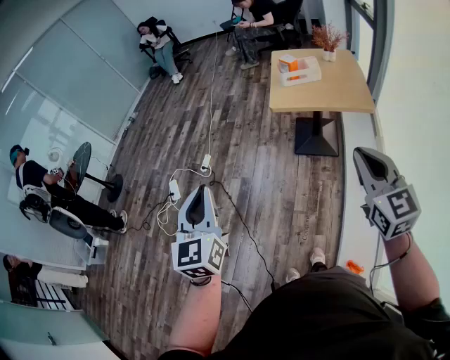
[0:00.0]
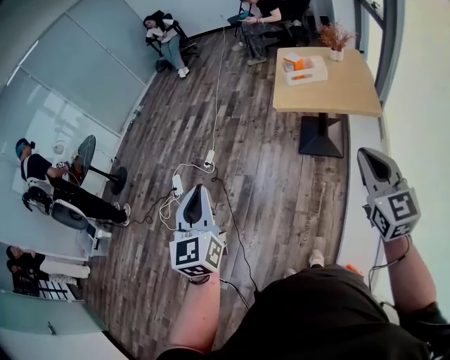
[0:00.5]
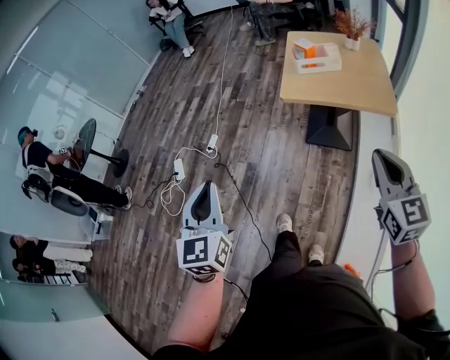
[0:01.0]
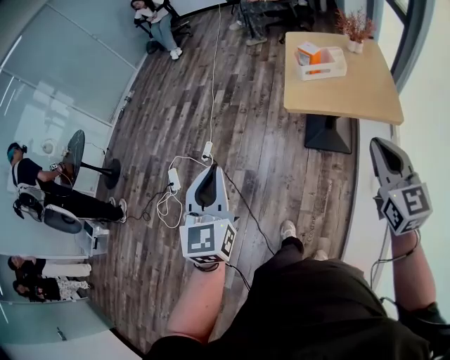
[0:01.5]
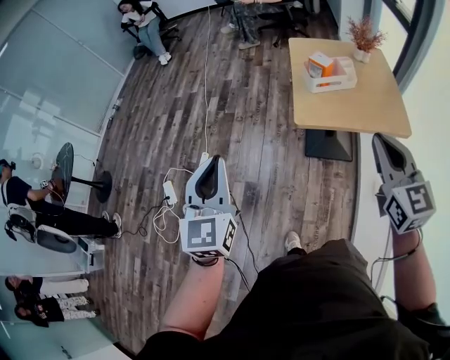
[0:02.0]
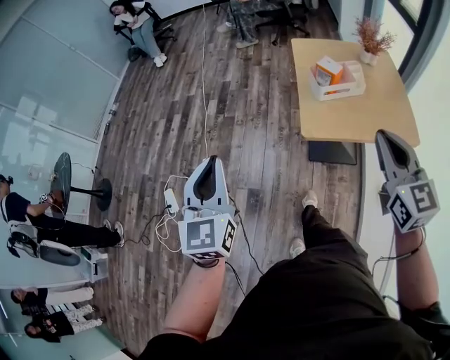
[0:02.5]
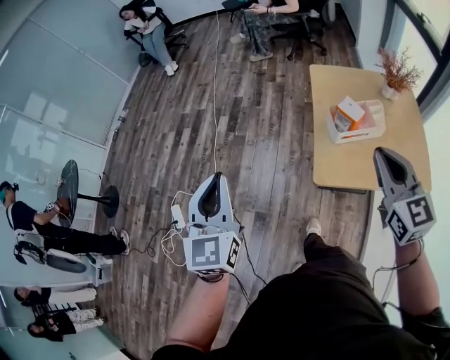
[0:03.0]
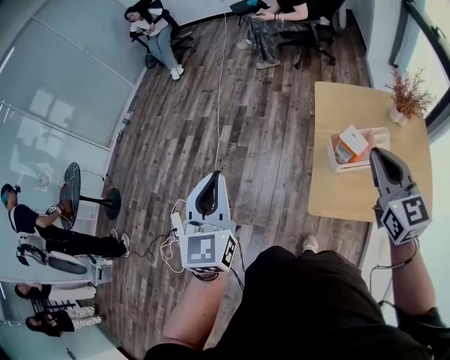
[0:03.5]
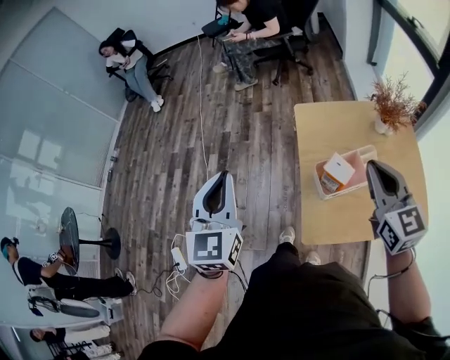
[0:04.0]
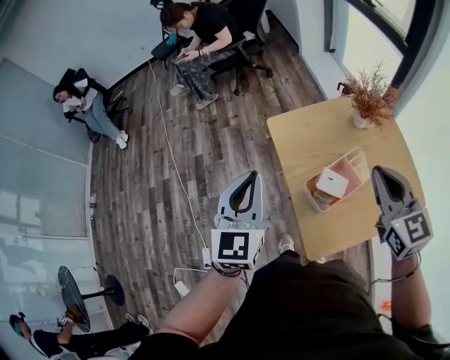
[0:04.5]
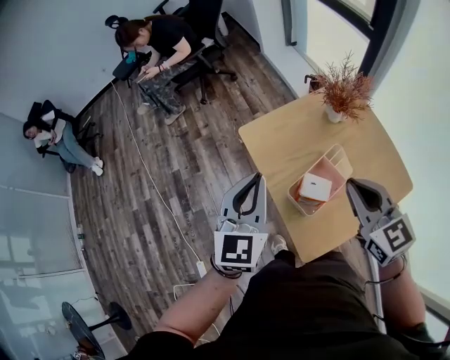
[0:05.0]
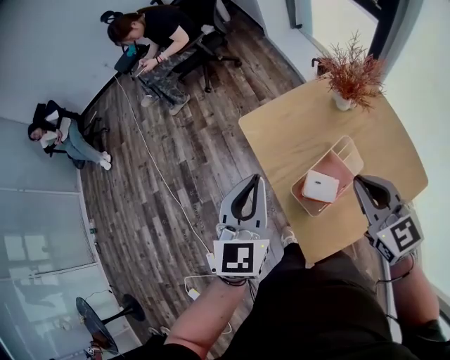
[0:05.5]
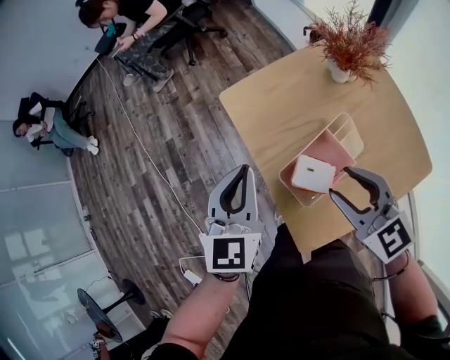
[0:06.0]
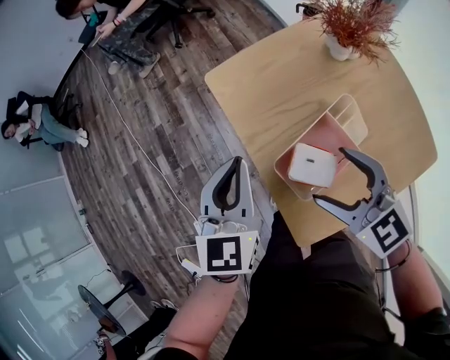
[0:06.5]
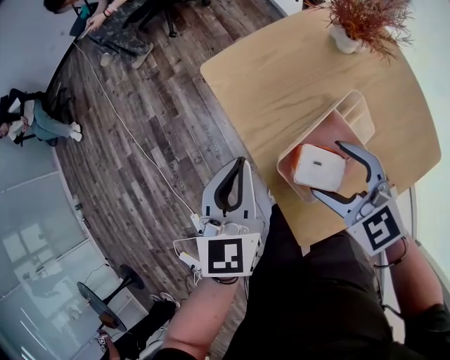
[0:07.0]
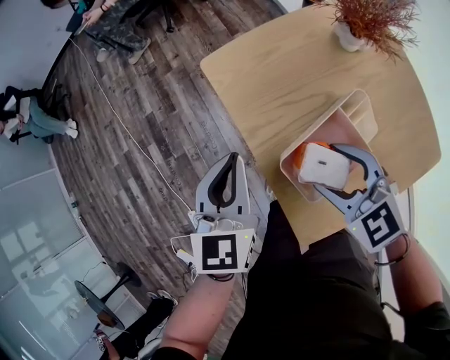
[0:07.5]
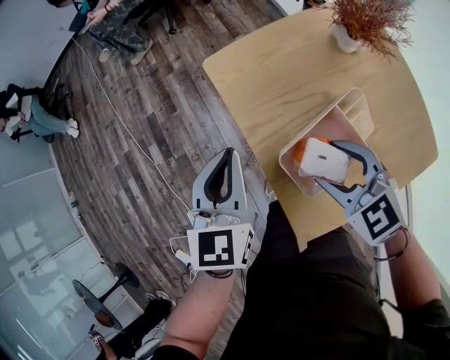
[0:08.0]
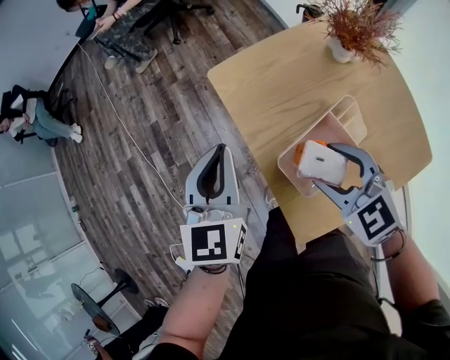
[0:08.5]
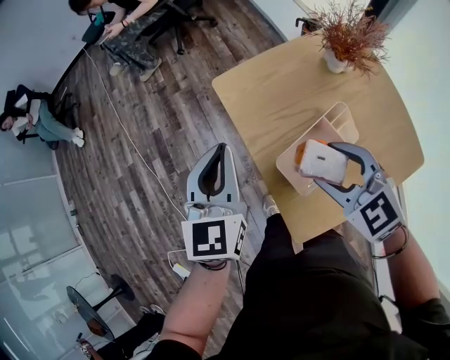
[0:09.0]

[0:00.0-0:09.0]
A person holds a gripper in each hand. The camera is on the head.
0:00.0 to 0:02.0: Both grippers travel together forward, about 35 cm.
0:02.0 to 0:04.5: The two grippers travel together, some 50 cm. The left gripper turns by about 30 degrees.
0:04.5 to 0:07.0: The right gripper shifts approximately 20 cm downward, turns by approximately 30 degrees, and opens up. The left gripper moves downward and to the right, about 20 cm.
0:07.0 to 0:09.0: Both grippers travel together upward, some 5 cm.

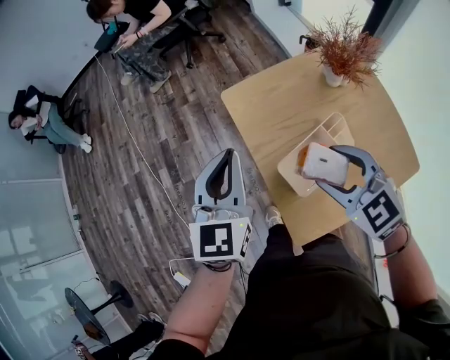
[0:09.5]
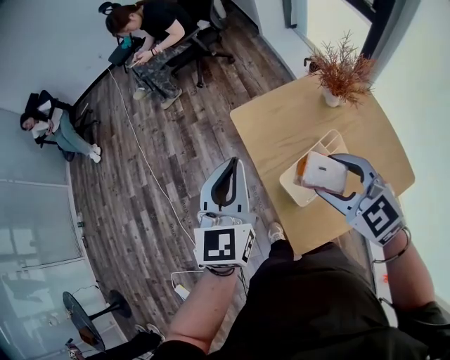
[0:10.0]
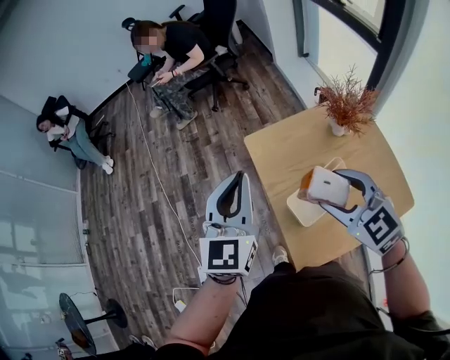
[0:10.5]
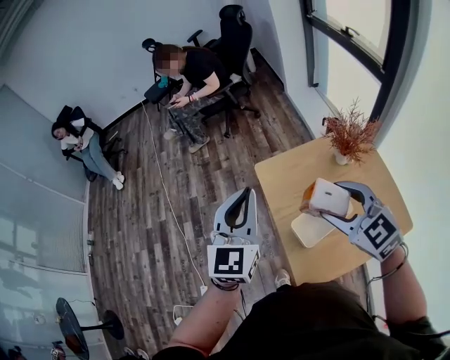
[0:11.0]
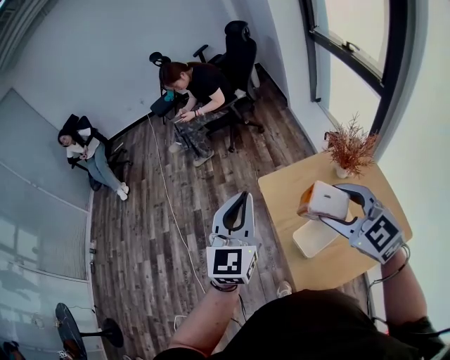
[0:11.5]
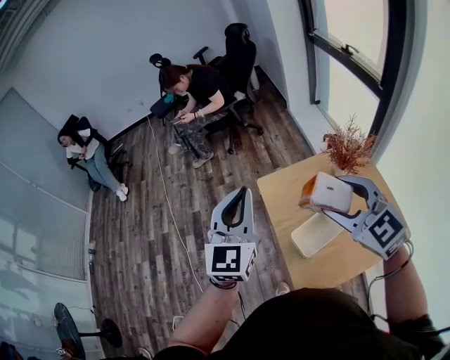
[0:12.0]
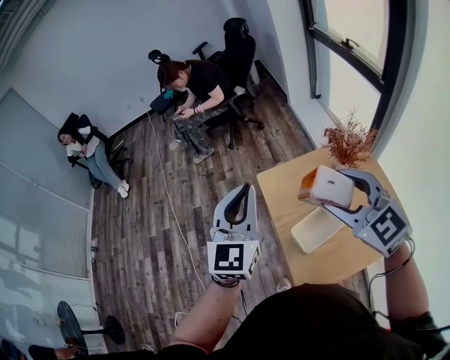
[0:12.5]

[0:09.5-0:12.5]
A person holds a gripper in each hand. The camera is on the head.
0:09.5 to 0:11.0: Both grippers move upward, some 15 cm.
0:11.0 to 0:12.5: The right gripper travels upward by approximately 10 cm.

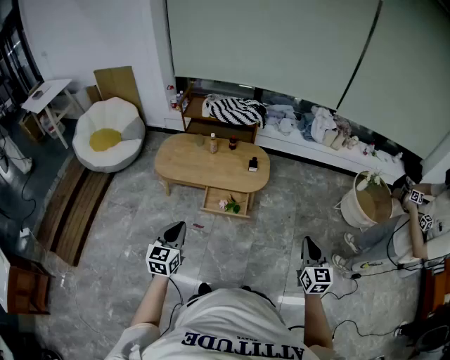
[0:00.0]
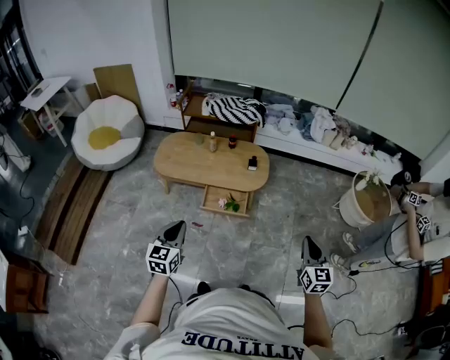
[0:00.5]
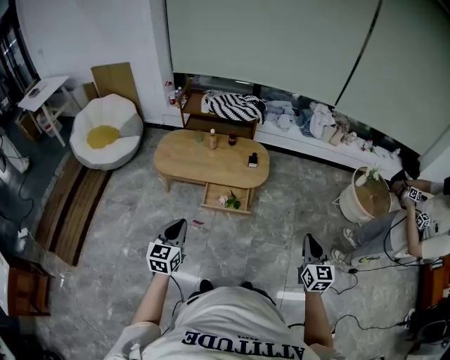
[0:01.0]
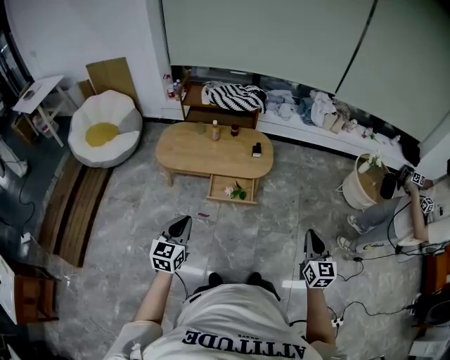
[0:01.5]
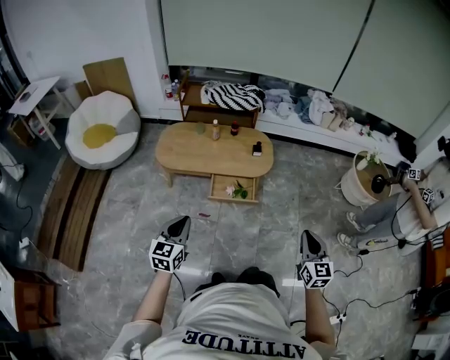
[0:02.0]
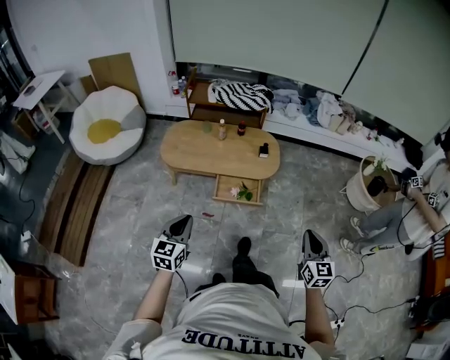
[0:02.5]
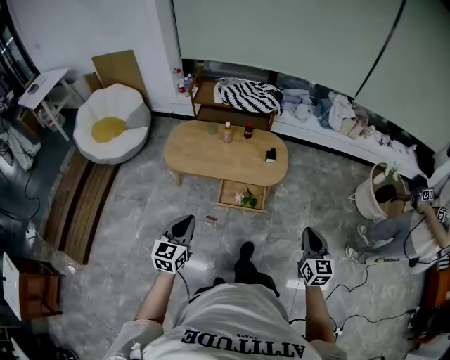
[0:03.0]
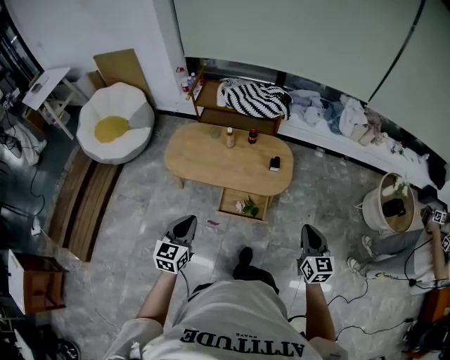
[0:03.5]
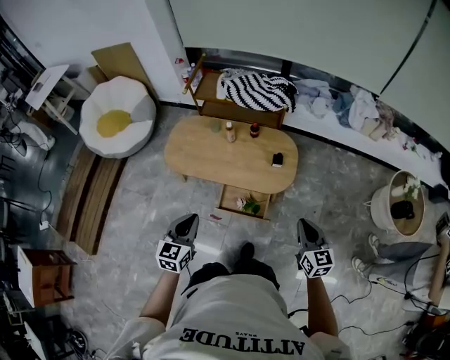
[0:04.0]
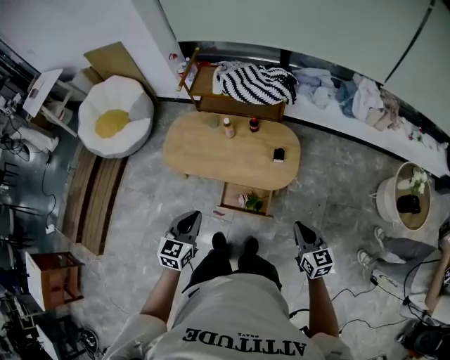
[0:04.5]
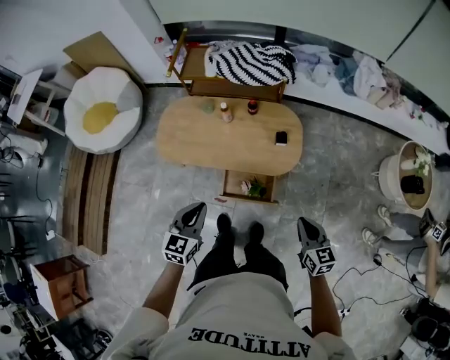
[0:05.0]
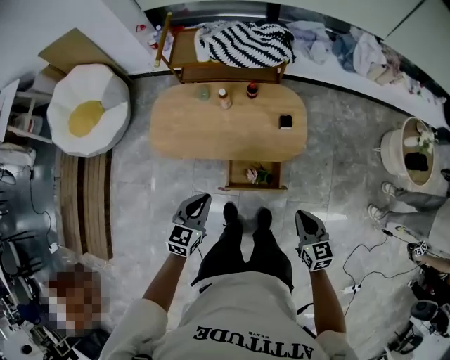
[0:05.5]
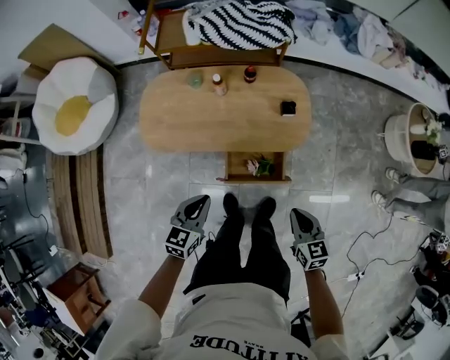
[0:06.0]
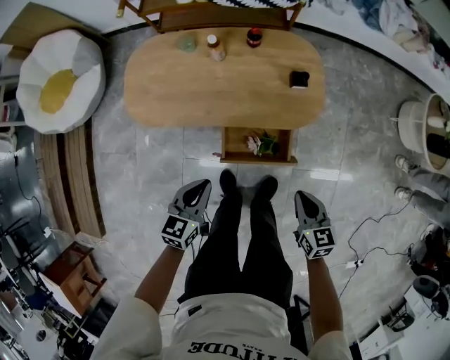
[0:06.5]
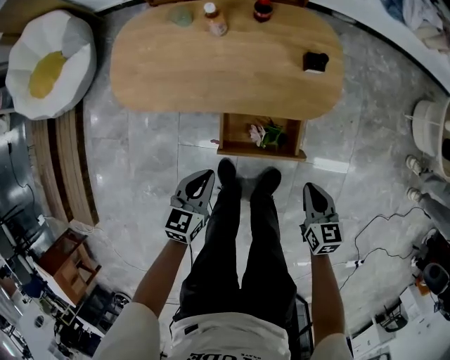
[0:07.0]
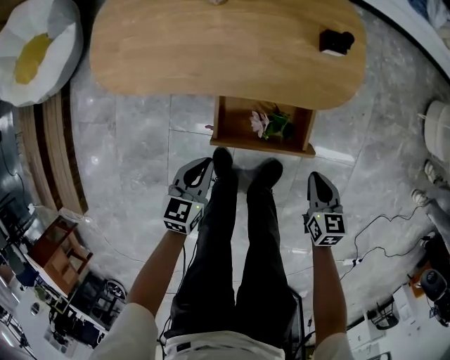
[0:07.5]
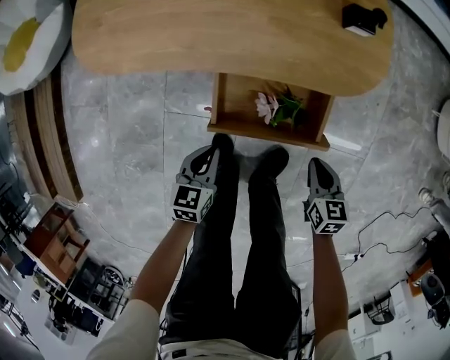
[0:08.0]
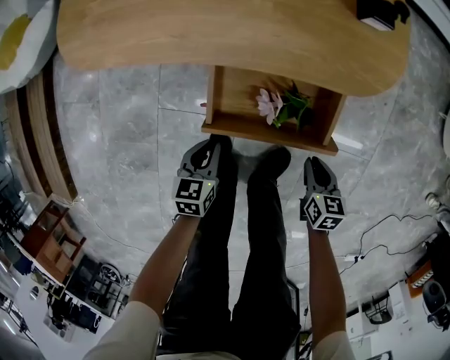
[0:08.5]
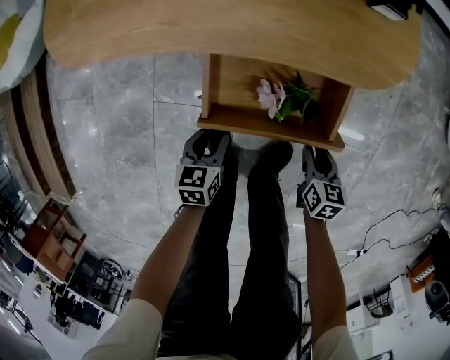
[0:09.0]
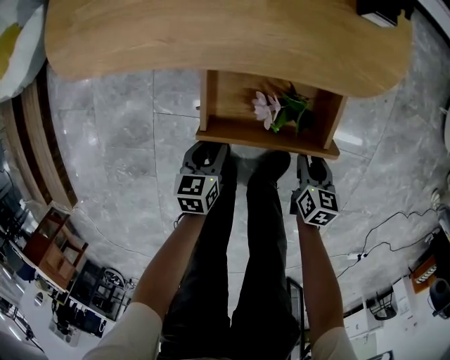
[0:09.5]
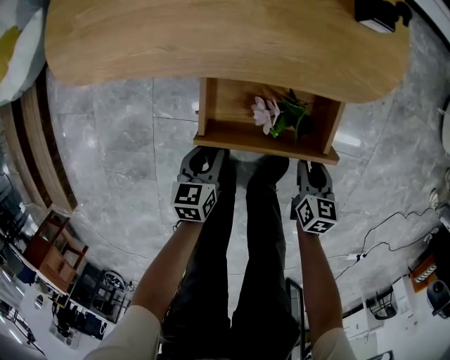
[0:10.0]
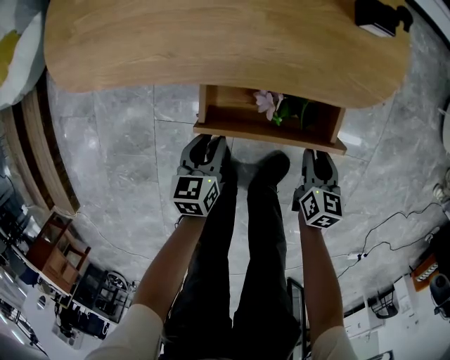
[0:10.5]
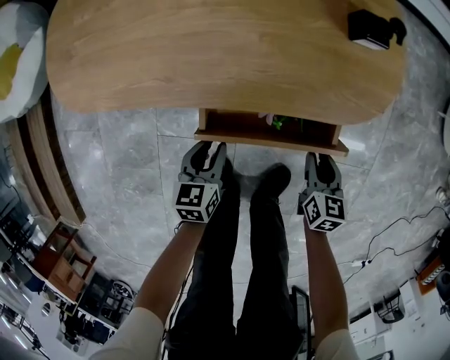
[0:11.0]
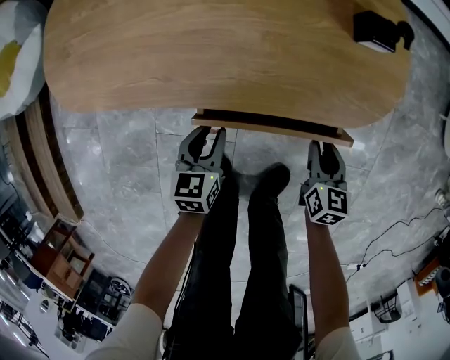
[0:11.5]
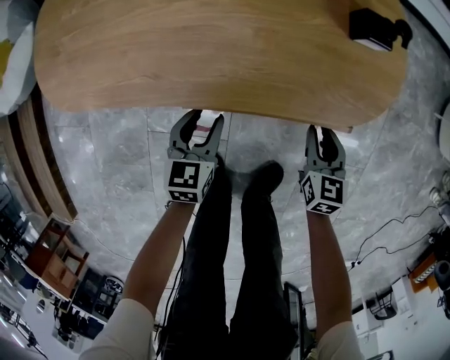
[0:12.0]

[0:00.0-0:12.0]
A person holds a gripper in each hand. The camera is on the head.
0:00.0 to 0:02.0: The left gripper heads to the left, covering about 10 cm; the right gripper goes roughly 10 cm to the left and backward.
0:02.0 to 0:04.0: The grippers both shift forward by roughly 30 cm. The right gripper turns by about 20 degrees.
0:04.0 to 0:06.0: The right gripper travels downward and to the left by some 25 cm, and rotates approximately 20 degrees. The left gripper goes approximately 20 cm downward and forward, and changes its angle by roughly 20 degrees.
0:06.0 to 0:08.0: Both grippers move downward, some 40 cm.
0:08.0 to 0:10.0: Both grippers travel together downward, some 10 cm. The left gripper opens; the right gripper opens.
0:10.0 to 0:12.0: The two grippers go approximately 15 cm forward.

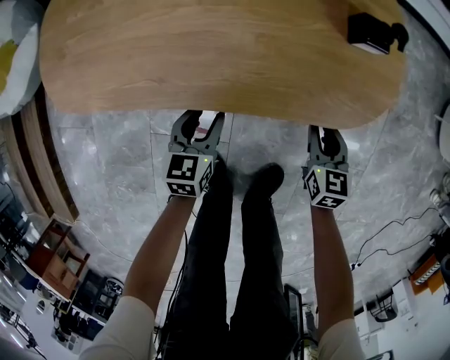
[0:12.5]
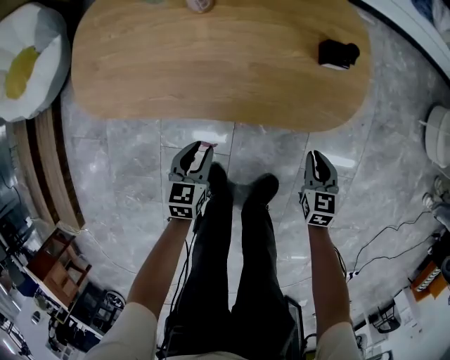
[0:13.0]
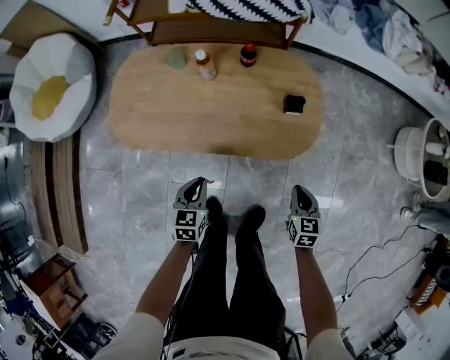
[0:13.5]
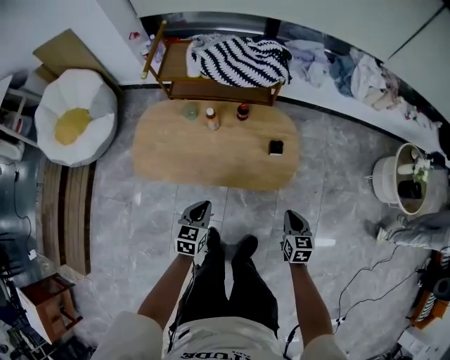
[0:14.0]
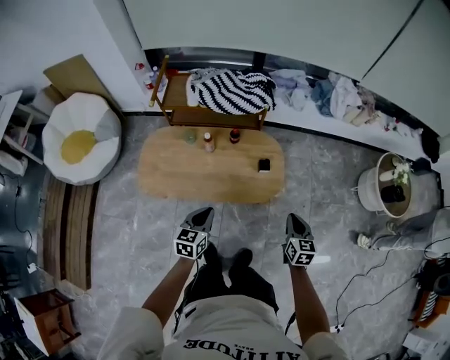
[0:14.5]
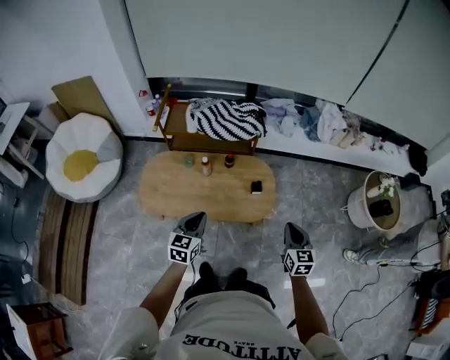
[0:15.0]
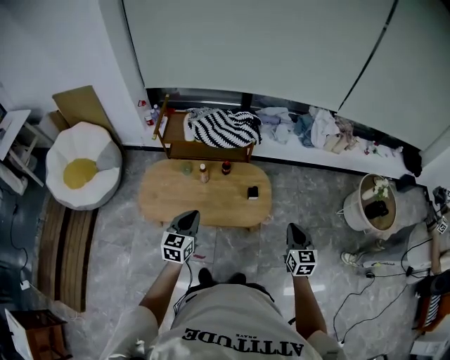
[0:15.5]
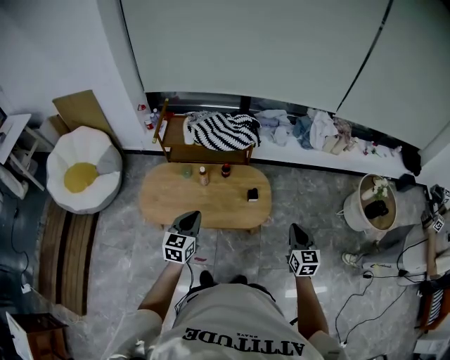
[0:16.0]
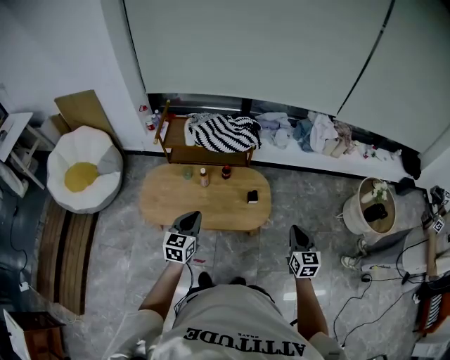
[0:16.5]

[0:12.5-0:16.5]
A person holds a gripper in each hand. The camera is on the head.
0:12.5 to 0:14.5: The two grippers go some 50 cm upward. The left gripper closes. The right gripper closes.
0:14.5 to 0:16.5: The two grippers go approximately 15 cm upward.
